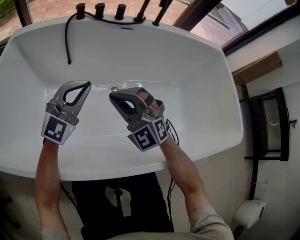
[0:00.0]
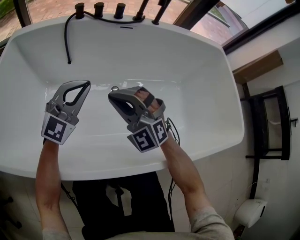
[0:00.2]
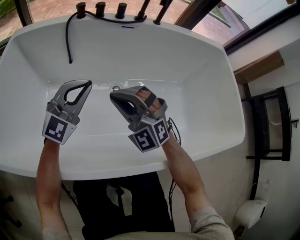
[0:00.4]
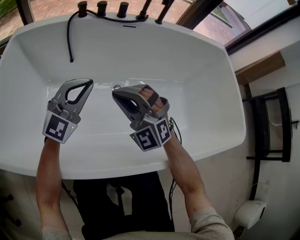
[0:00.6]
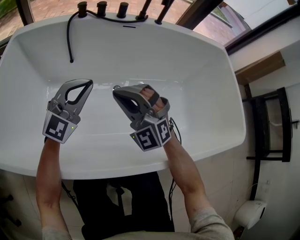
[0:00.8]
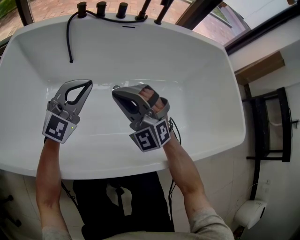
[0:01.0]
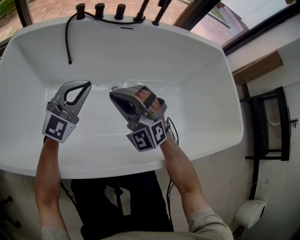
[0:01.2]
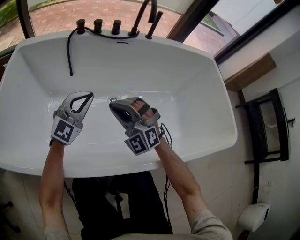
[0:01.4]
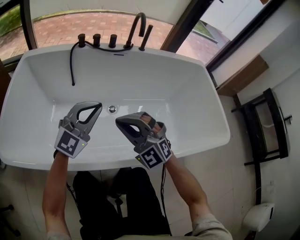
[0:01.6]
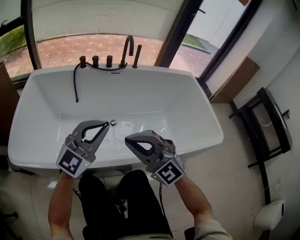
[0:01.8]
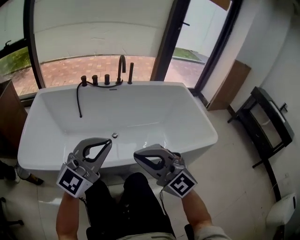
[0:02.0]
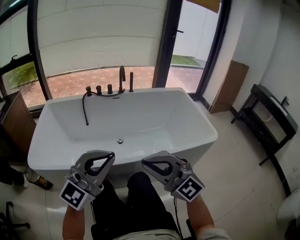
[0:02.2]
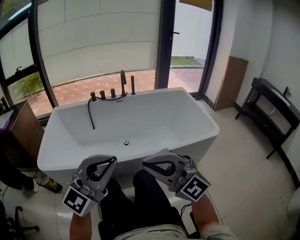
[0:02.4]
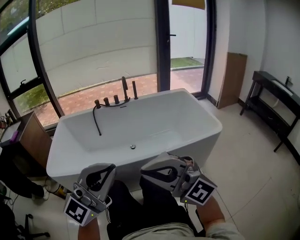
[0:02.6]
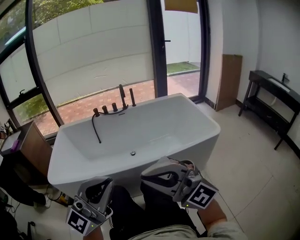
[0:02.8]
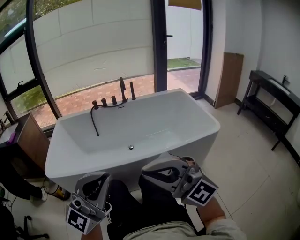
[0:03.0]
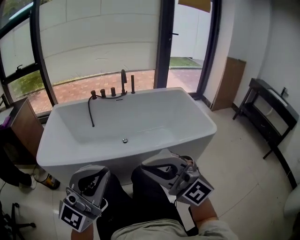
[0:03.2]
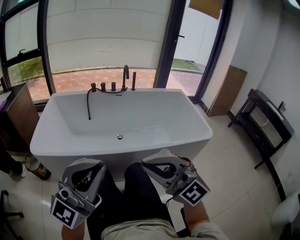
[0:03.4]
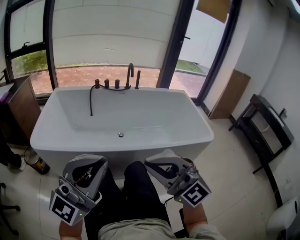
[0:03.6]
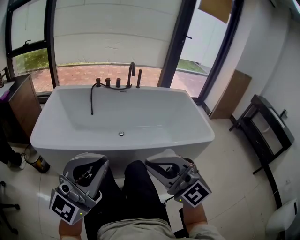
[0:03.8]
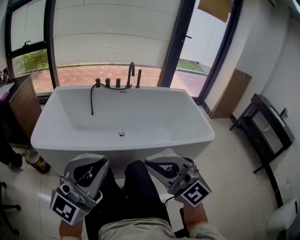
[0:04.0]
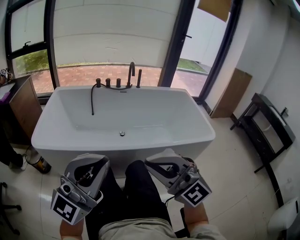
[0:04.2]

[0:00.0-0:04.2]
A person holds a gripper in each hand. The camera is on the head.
0:00.0 to 0:01.4: The grippers make only small movements.
0:01.4 to 0:02.8: The pair of grippers is taken backward, approximately 50 cm. The grippers both shift upward by some 35 cm. The right gripper rotates about 40 degrees. Meanwhile the left gripper changes its angle by approximately 40 degrees.
0:02.8 to 0:04.2: The grippers stay close to where they were, moving slightly.

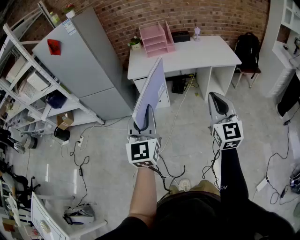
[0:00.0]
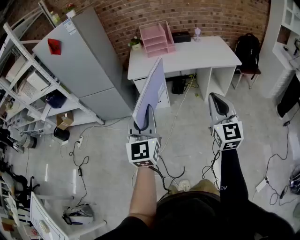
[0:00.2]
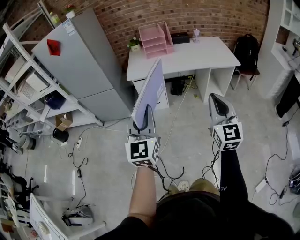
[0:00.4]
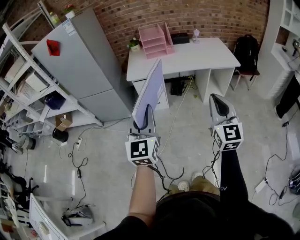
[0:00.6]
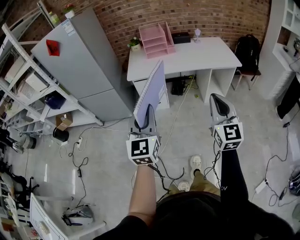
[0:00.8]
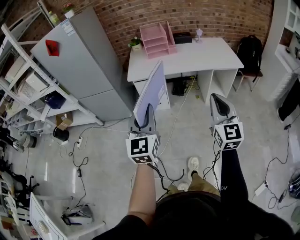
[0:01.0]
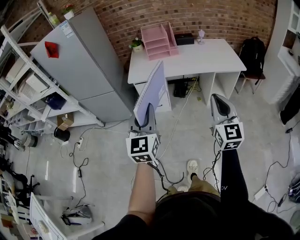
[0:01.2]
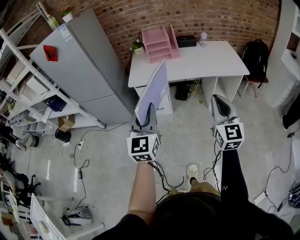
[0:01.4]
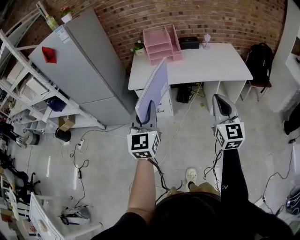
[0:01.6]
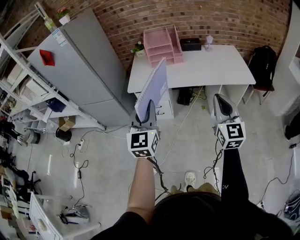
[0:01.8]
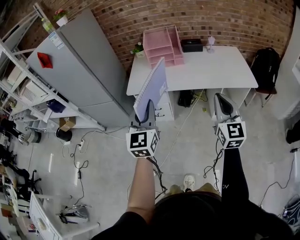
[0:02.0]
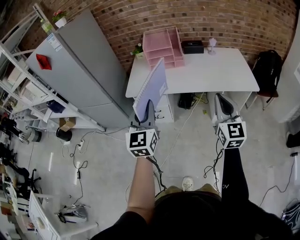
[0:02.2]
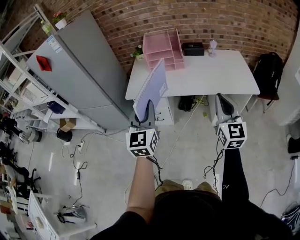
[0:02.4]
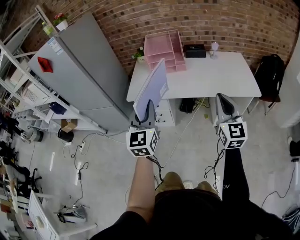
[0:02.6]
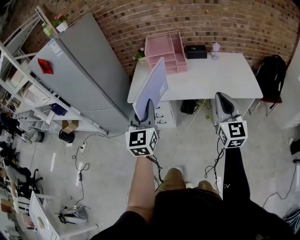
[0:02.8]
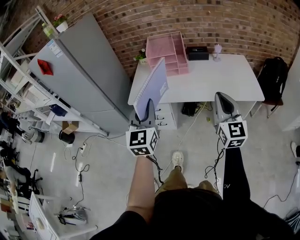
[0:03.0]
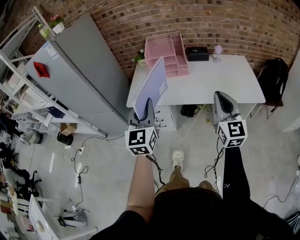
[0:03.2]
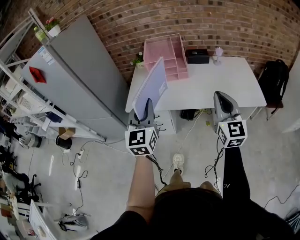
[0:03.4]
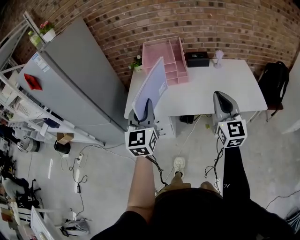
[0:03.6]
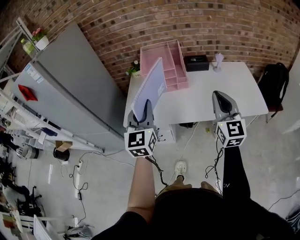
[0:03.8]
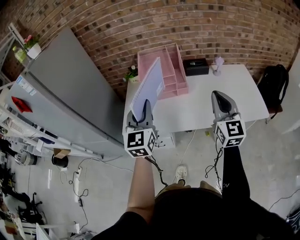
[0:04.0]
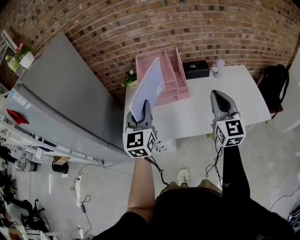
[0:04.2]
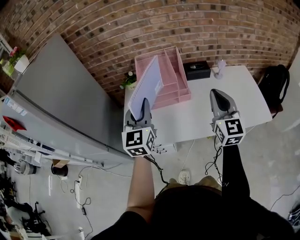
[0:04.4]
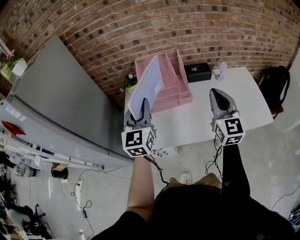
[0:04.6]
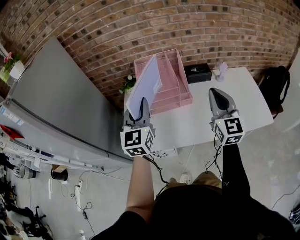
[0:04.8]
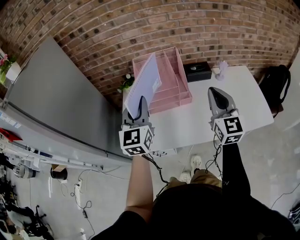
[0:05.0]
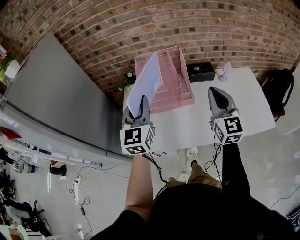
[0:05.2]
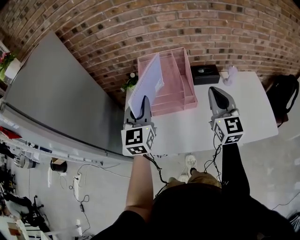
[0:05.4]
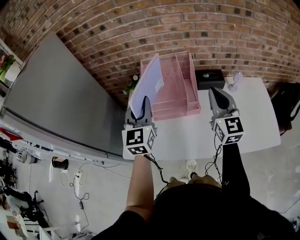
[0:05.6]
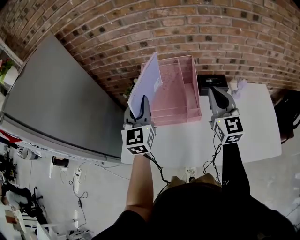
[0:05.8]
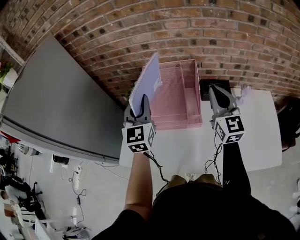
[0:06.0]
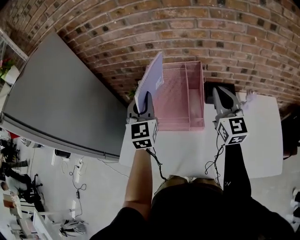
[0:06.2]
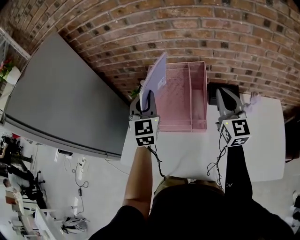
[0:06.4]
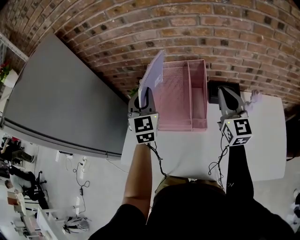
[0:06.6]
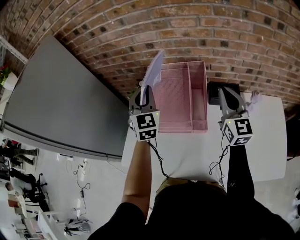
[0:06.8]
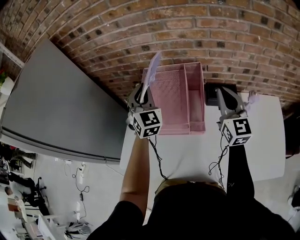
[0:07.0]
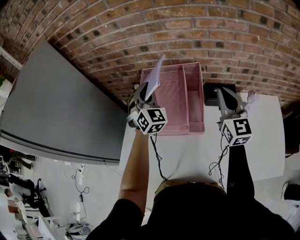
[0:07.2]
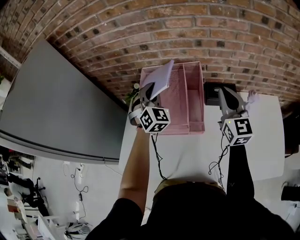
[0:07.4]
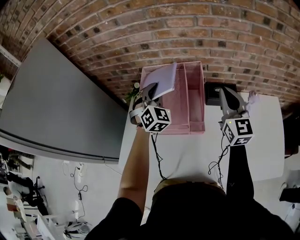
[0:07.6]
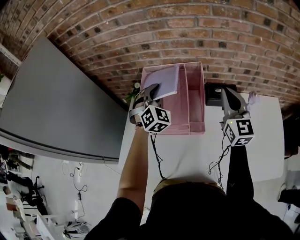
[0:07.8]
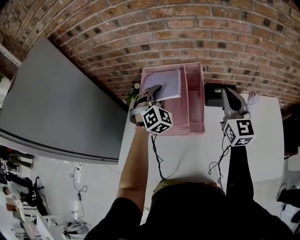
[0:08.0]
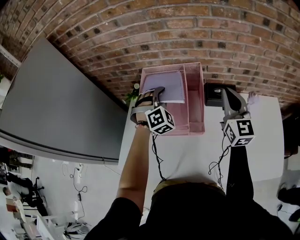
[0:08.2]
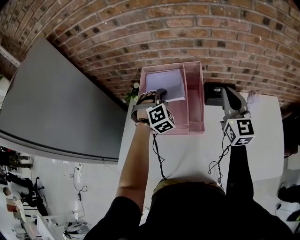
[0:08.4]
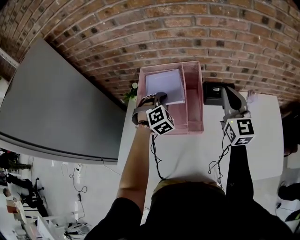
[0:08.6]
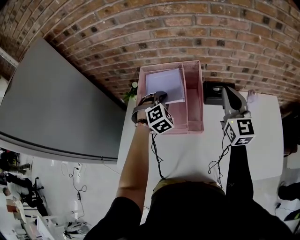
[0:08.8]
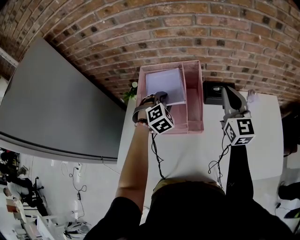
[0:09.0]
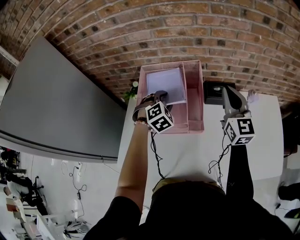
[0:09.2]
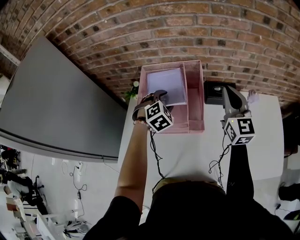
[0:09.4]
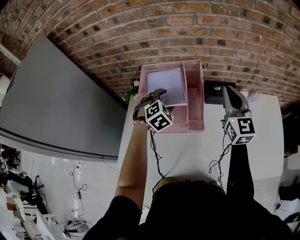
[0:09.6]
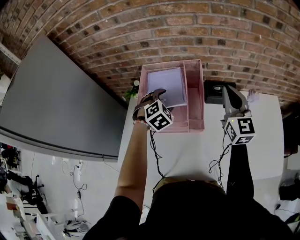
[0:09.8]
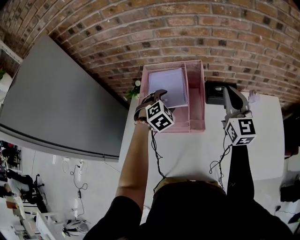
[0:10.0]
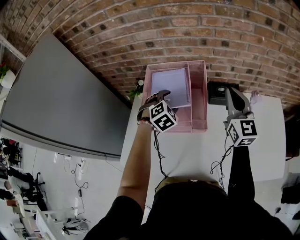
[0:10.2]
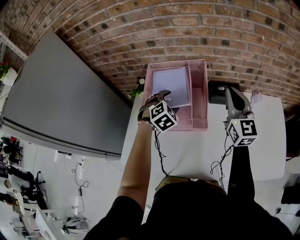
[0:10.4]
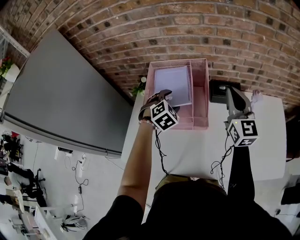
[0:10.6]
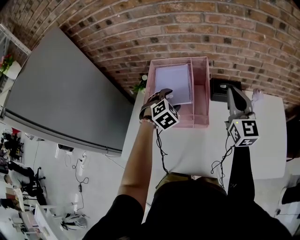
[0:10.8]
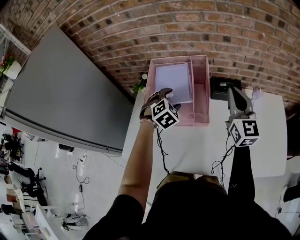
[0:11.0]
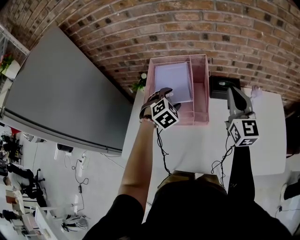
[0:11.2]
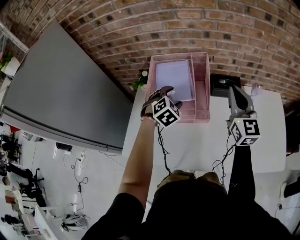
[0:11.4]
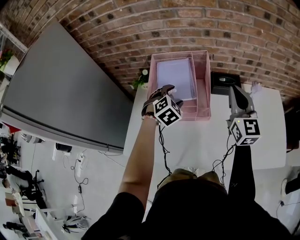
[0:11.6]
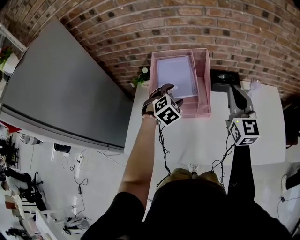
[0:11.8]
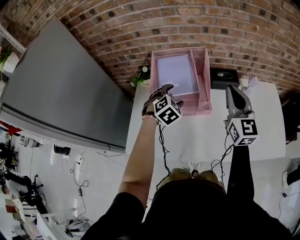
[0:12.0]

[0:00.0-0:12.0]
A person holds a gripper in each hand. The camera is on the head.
0:00.0 to 0:01.6: Both grippers move forward, about 20 cm.
0:01.6 to 0:03.0: Both grippers travel together forward, some 20 cm.
0:03.0 to 0:04.4: The two grippers go approximately 30 cm forward.
0:04.4 to 0:06.0: Both grippers travel together forward, some 25 cm.
0:06.0 to 0:07.6: The right gripper heads forward, covering some 5 cm; the left gripper is displaced forward, downward and to the right by about 15 cm, and rotates around the line of its fingers by some 40 degrees, clockwise from behind.
0:07.6 to 0:09.0: The left gripper goes approximately 10 cm downward, changes its angle by roughly 30 degrees, and opens.
0:09.0 to 0:10.4: The left gripper opens up.
0:10.4 to 0:12.0: Both grippers travel together backward, roughly 10 cm.

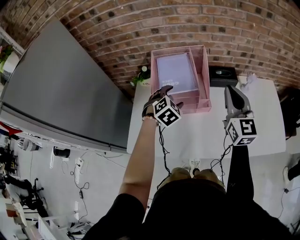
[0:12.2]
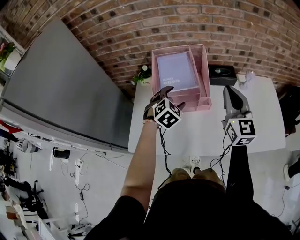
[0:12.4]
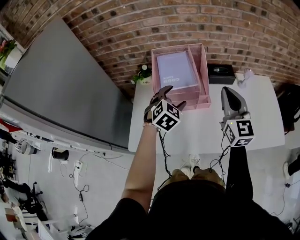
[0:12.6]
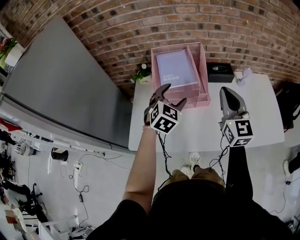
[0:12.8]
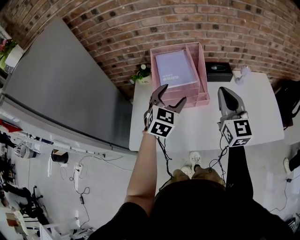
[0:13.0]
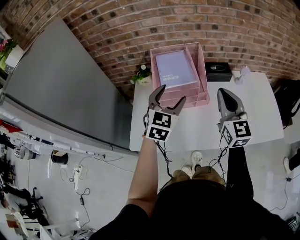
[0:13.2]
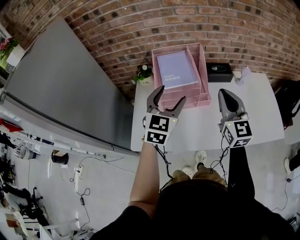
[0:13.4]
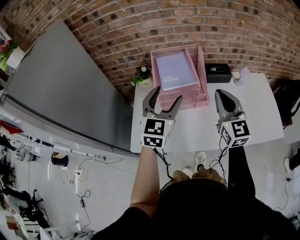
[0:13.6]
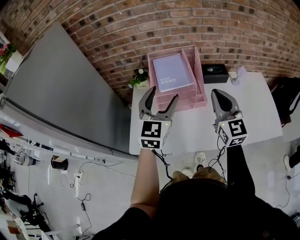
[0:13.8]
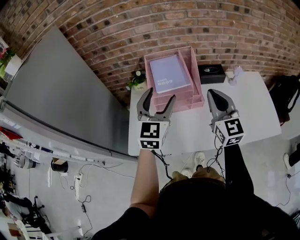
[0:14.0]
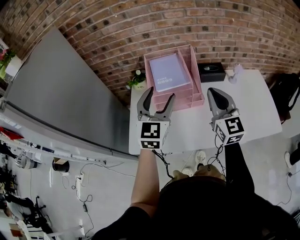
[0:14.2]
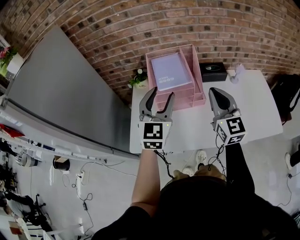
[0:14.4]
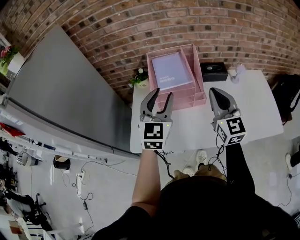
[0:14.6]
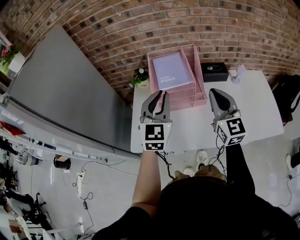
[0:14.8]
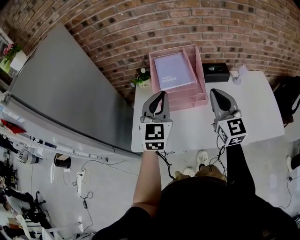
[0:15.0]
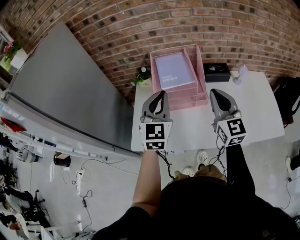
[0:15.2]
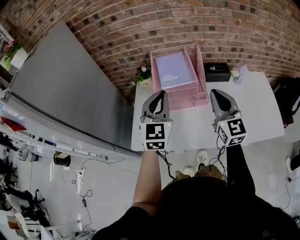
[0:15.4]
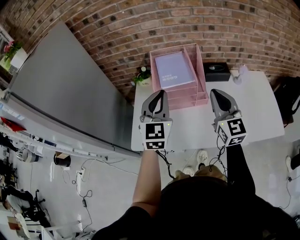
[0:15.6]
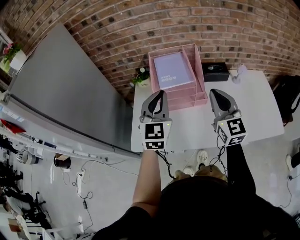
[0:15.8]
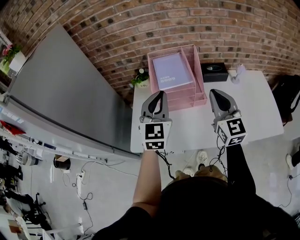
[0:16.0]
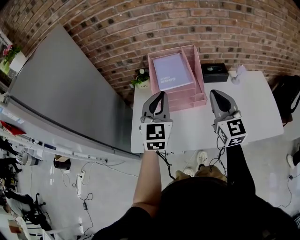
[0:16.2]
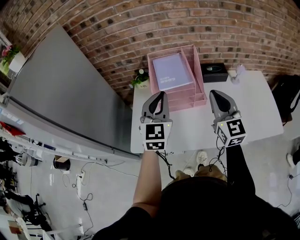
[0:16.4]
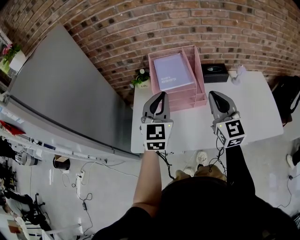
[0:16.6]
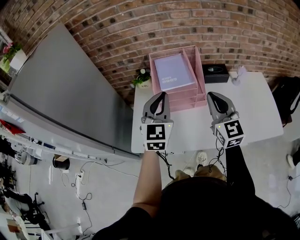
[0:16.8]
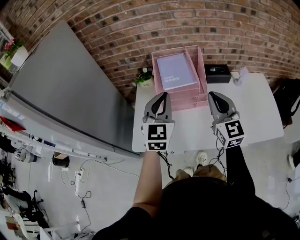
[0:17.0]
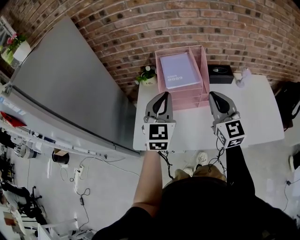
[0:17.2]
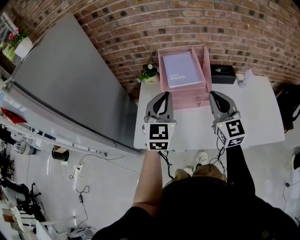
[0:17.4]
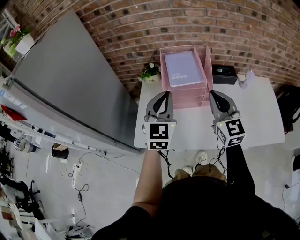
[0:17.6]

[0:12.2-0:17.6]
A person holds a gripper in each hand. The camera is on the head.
0:12.2 to 0:13.6: The right gripper shifts about 10 cm backward and to the left, while the left gripper is displaced upward and backward by roughly 20 cm, and angles its fingers upward, by some 40 degrees.
0:13.6 to 0:15.0: The left gripper closes up.
0:15.0 to 0:16.2: Neither gripper changes place.
0:16.2 to 0:17.6: The right gripper heads to the left, covering about 5 cm.

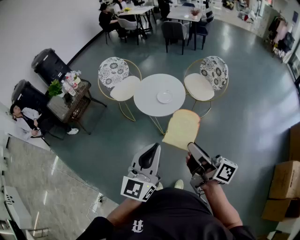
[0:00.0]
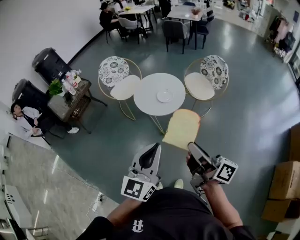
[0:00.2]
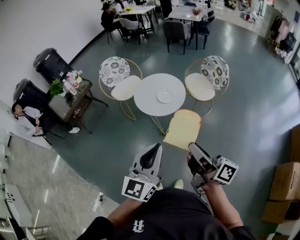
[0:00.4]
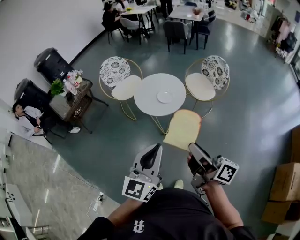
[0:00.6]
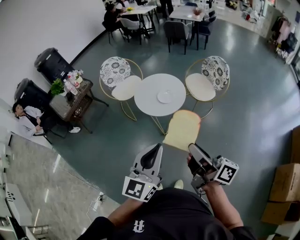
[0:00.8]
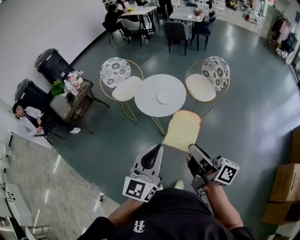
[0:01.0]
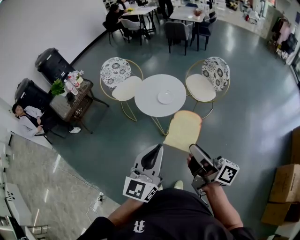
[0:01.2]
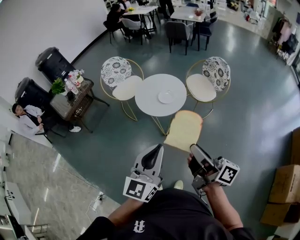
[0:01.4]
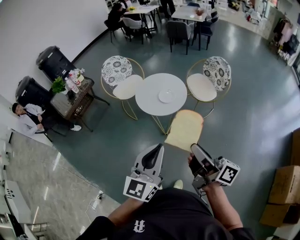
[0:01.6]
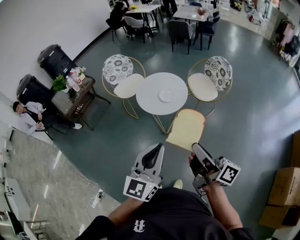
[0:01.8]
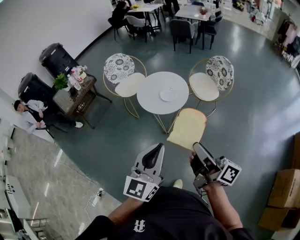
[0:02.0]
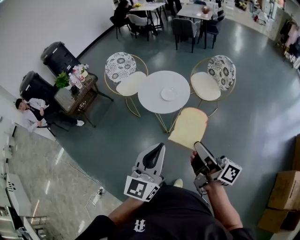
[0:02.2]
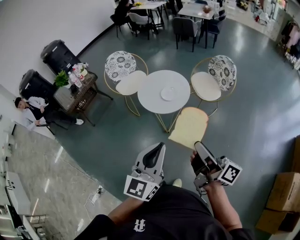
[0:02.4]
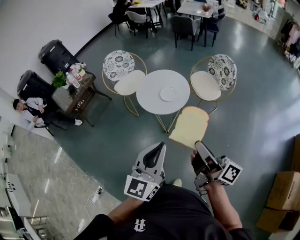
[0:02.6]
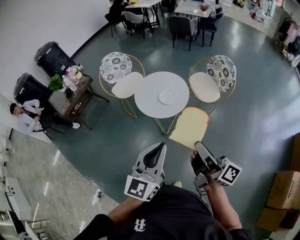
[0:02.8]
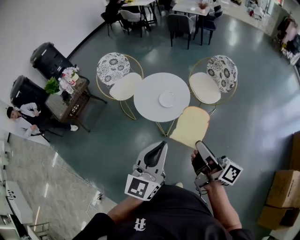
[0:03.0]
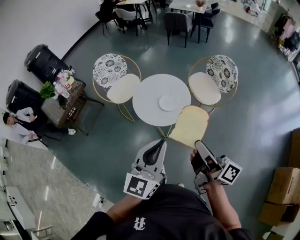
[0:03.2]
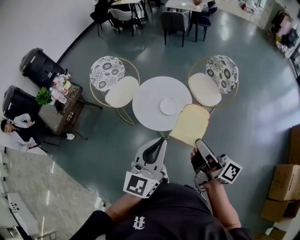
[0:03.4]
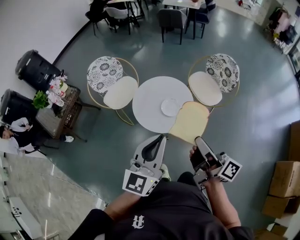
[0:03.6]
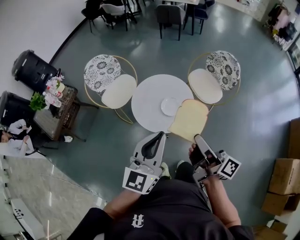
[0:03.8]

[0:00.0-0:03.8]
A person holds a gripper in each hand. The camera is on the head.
0:00.0 to 0:01.2: The grippers move only a little.
0:01.2 to 0:02.6: The right gripper changes place by some 5 cm.
0:02.6 to 0:03.8: Both grippers move forward, roughly 25 cm.
